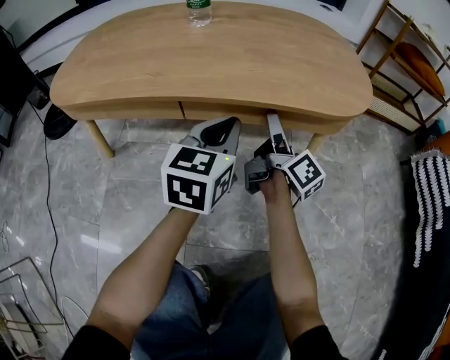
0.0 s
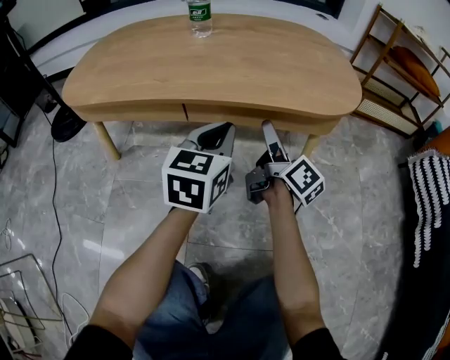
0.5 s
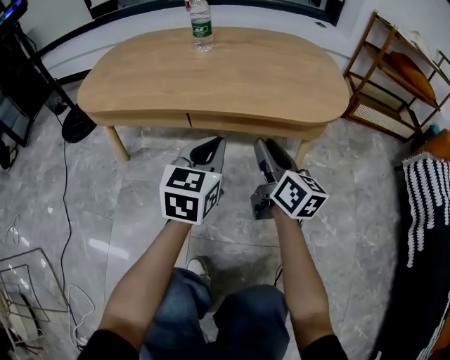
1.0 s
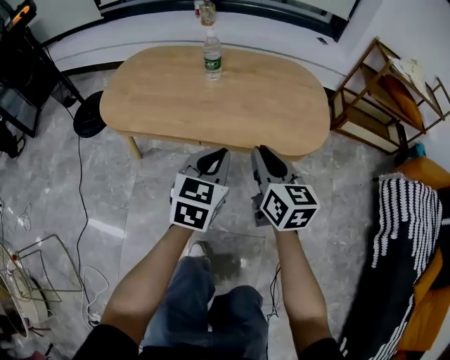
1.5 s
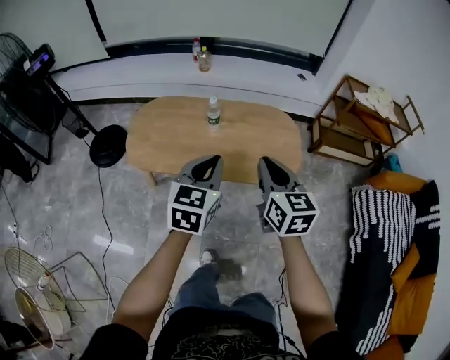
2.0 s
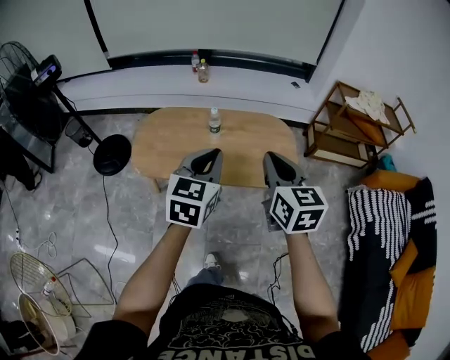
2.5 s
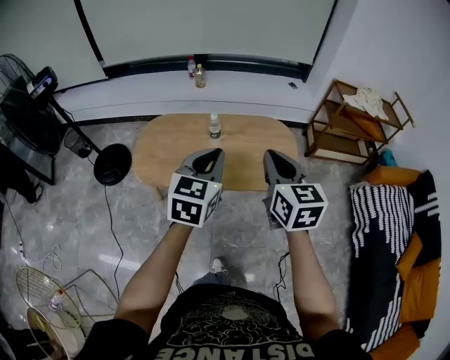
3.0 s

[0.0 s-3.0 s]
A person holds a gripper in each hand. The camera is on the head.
0.0 to 1.5 s: The right gripper moves upward and backward, approximately 30 cm, rotates around the line of its fingers by approximately 50 degrees, counterclockwise from behind, and closes. The left gripper goes about 20 cm upward.
1.5 to 3.0 s: The grippers both shift upward by some 40 cm.

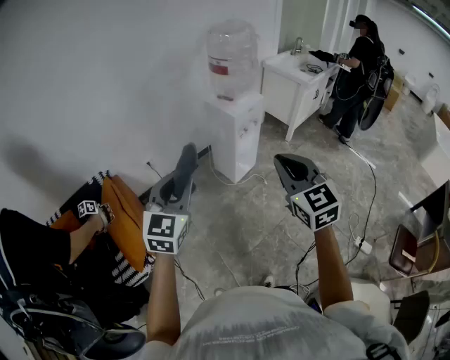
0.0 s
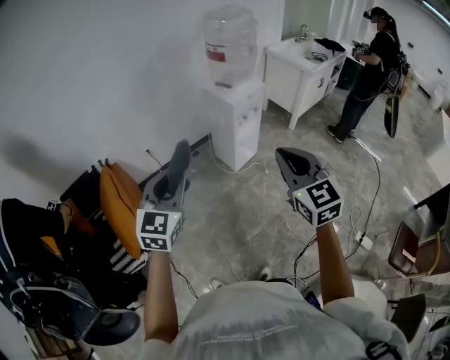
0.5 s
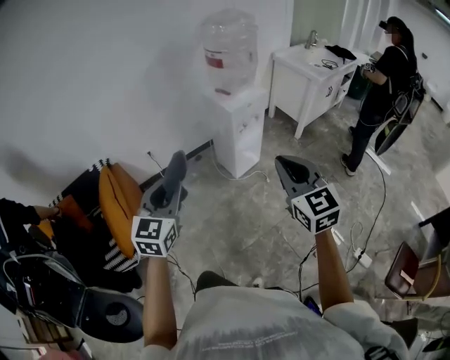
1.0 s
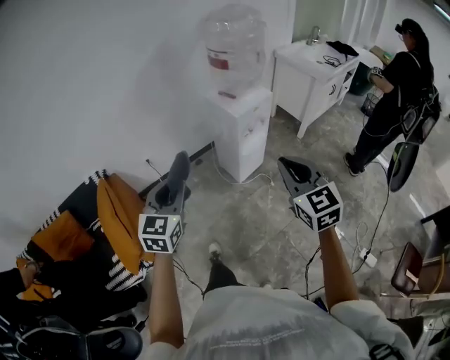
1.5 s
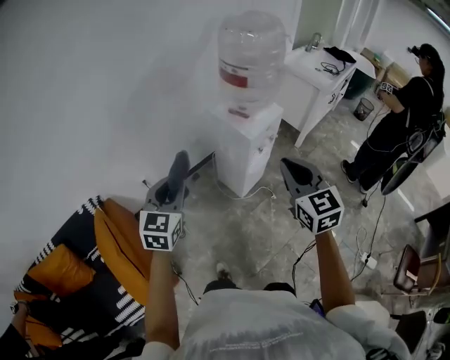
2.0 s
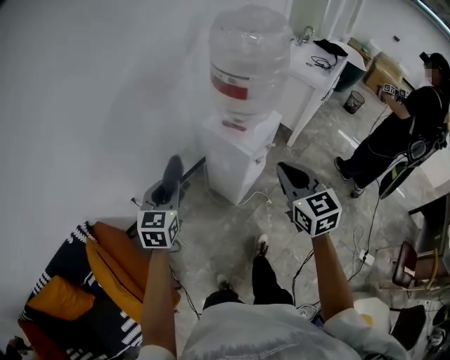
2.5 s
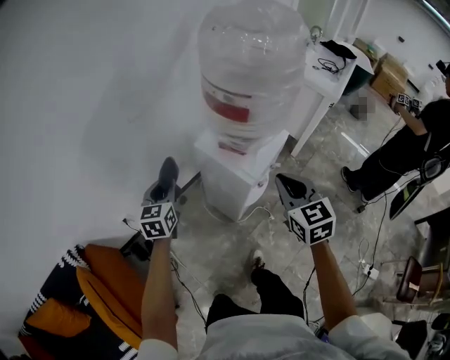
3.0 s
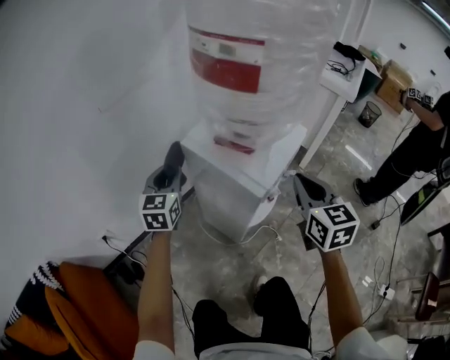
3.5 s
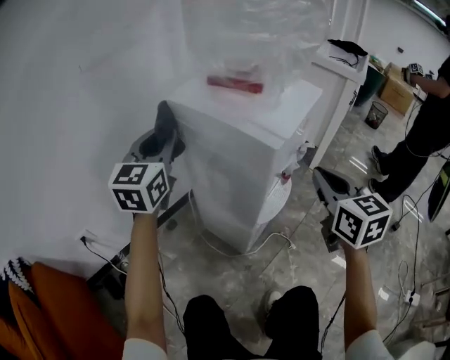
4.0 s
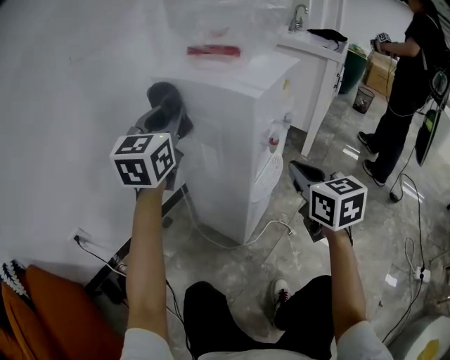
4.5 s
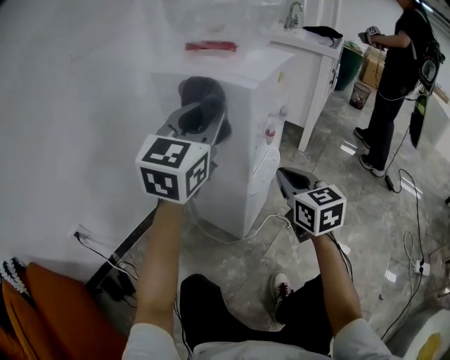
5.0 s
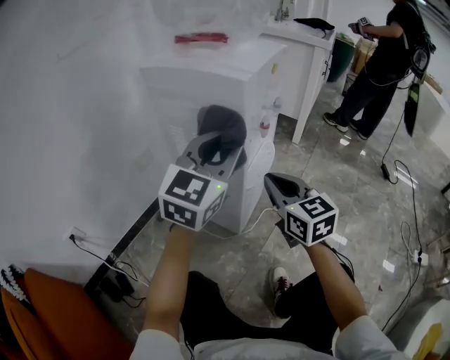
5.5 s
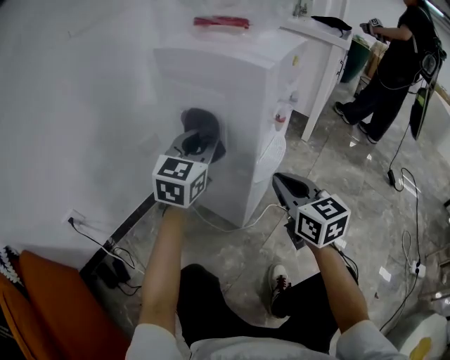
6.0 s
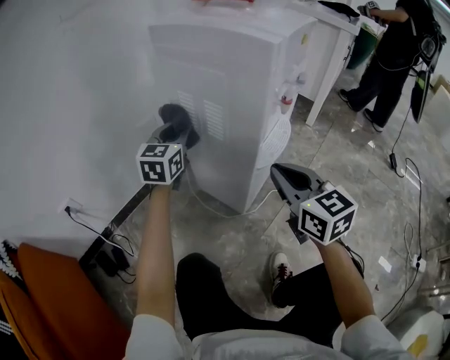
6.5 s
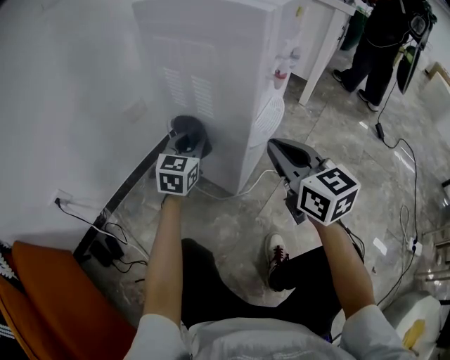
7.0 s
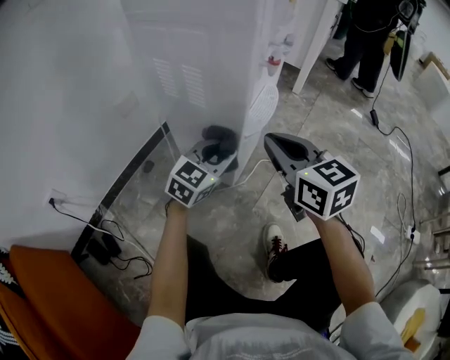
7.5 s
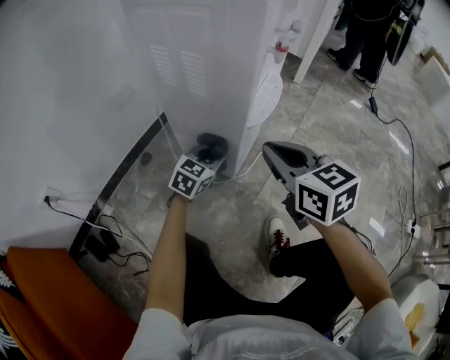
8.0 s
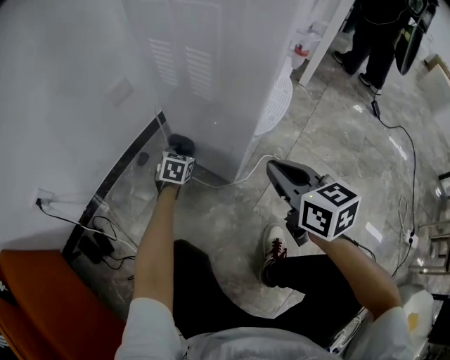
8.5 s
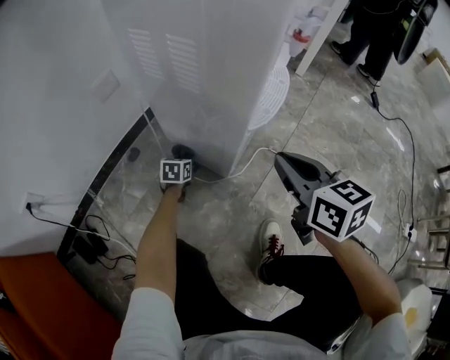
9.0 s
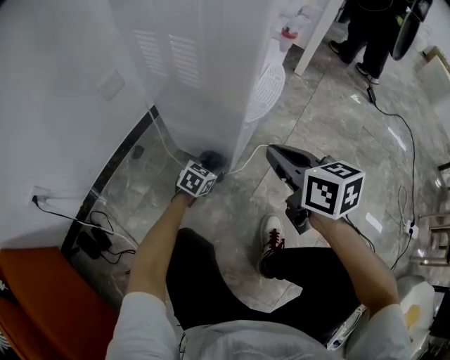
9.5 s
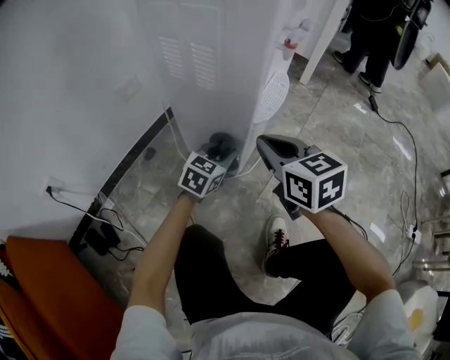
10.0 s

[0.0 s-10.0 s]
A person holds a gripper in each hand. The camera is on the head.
0.0 to 2.0 s: Both grippers travel together forward, approximately 30 cm.
2.0 to 4.0 s: The right gripper shifts roughly 50 cm downward and forward; the left gripper travels forward and downward by roughly 50 cm.
4.0 to 6.0 s: The right gripper shifts approximately 20 cm downward, backward and to the left; the left gripper moves downward and to the right, roughly 20 cm.
6.0 to 8.0 s: The right gripper moves downward, about 5 cm; the left gripper moves downward, about 30 cm, and rotates approximately 30 degrees.
8.0 to 10.0 s: The left gripper moves some 20 cm downward and comes back.

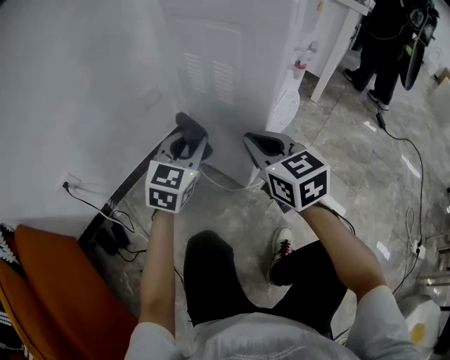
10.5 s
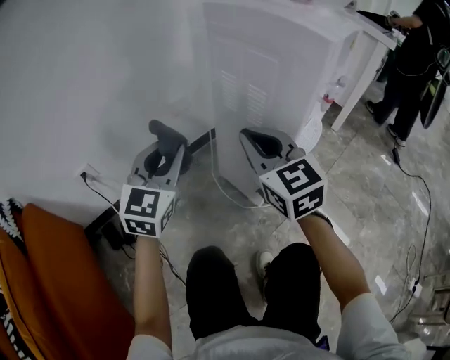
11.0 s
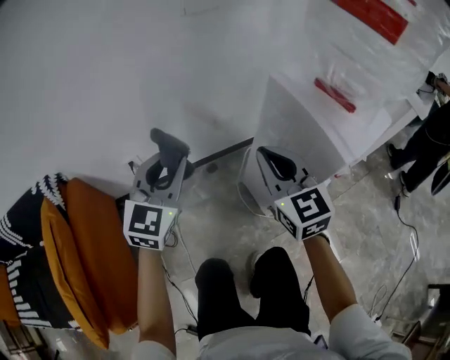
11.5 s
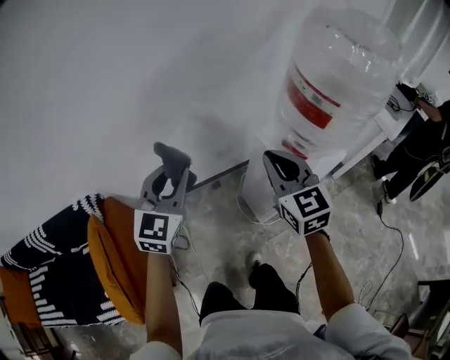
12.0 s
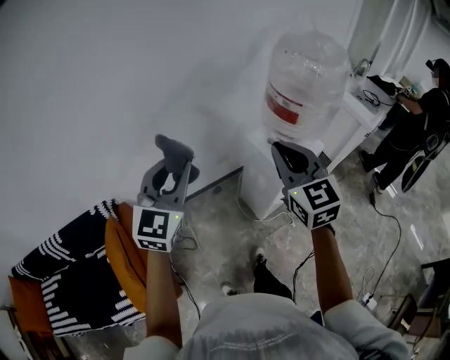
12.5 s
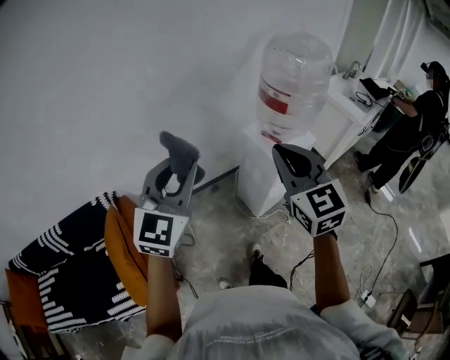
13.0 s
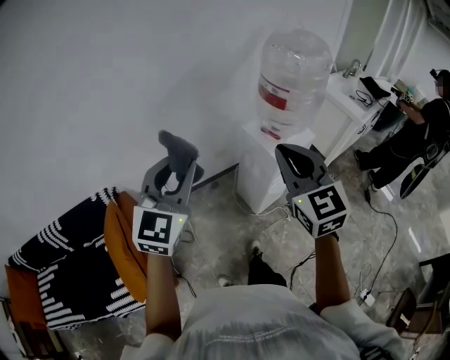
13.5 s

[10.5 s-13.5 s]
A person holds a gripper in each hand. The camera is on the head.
10.5 to 12.0 s: The right gripper shifts roughly 50 cm upward, and turns by roughly 20 degrees; the left gripper heads upward and to the left, covering some 60 cm, and rotates roughly 30 degrees.
12.0 to 13.5 s: The grippers both shift backward and upward by roughly 30 cm.

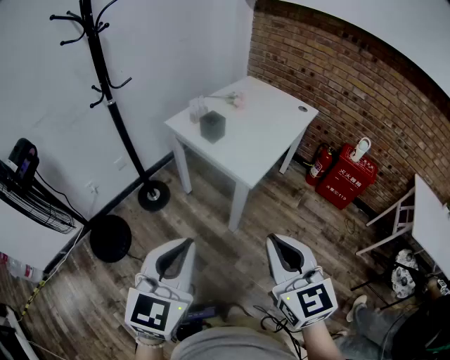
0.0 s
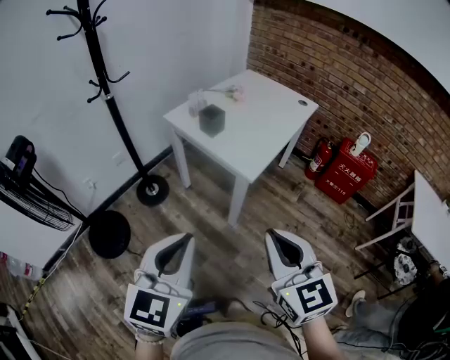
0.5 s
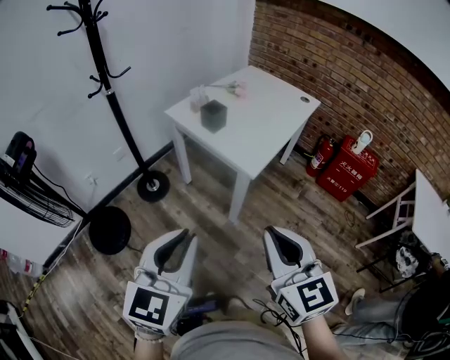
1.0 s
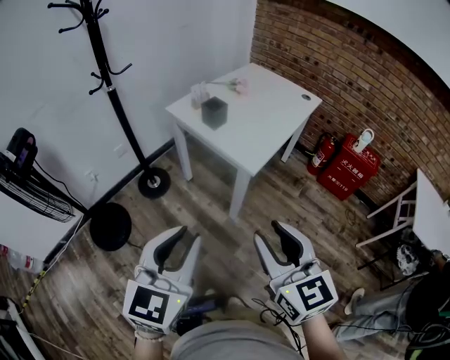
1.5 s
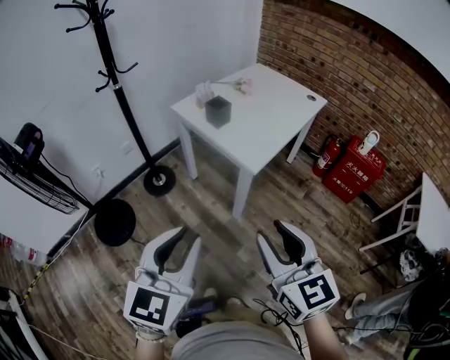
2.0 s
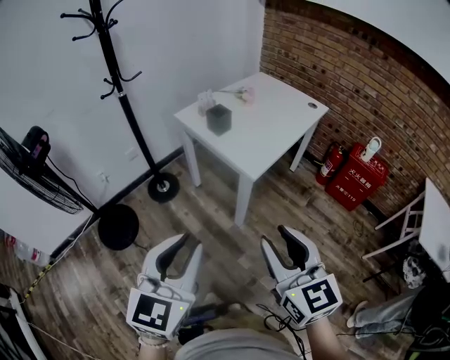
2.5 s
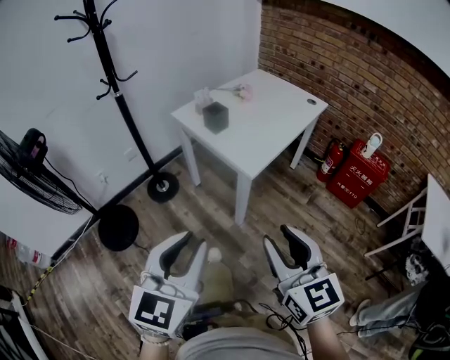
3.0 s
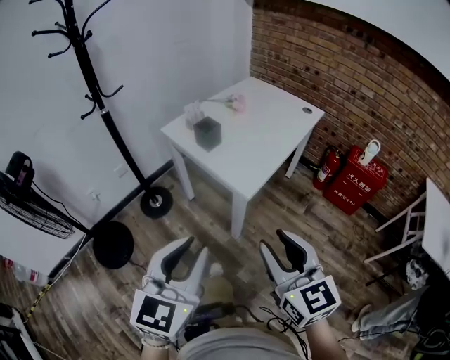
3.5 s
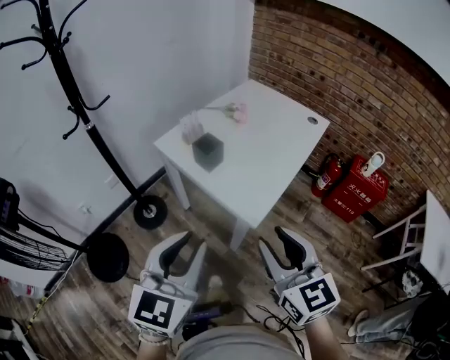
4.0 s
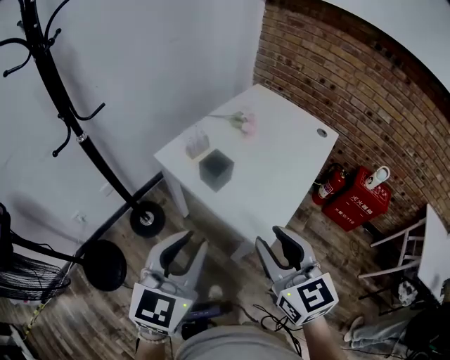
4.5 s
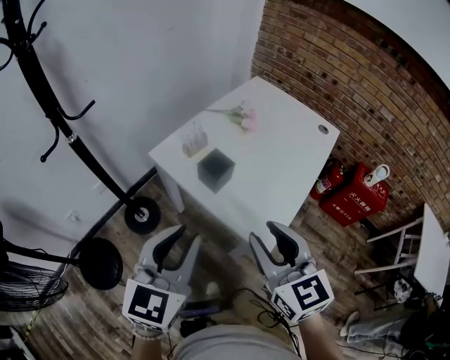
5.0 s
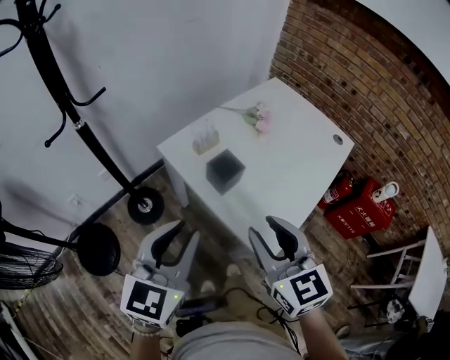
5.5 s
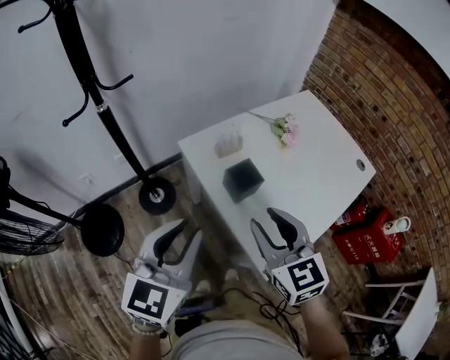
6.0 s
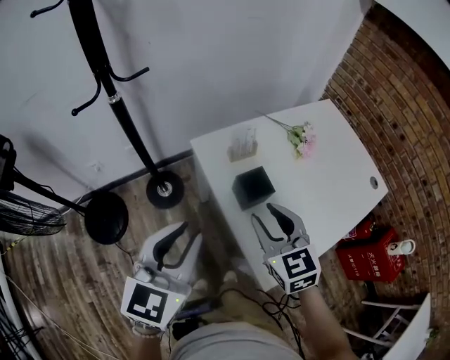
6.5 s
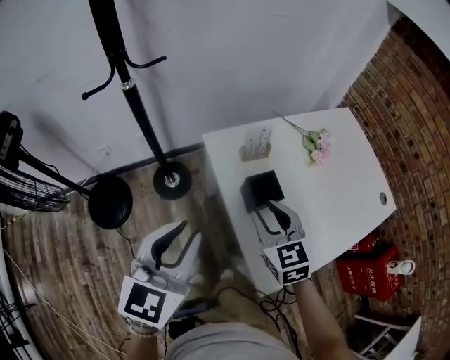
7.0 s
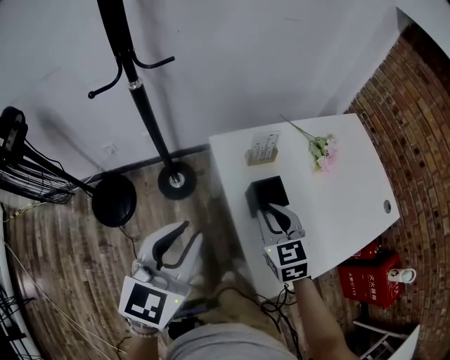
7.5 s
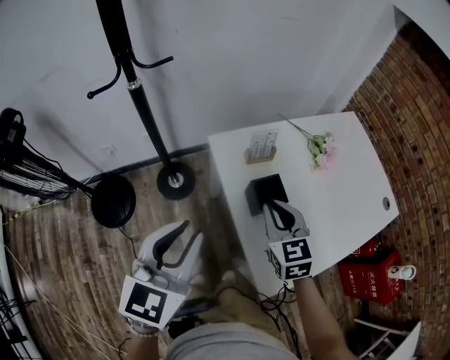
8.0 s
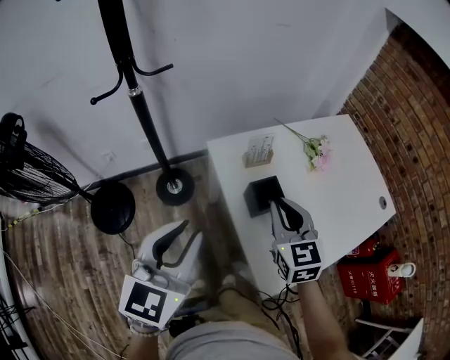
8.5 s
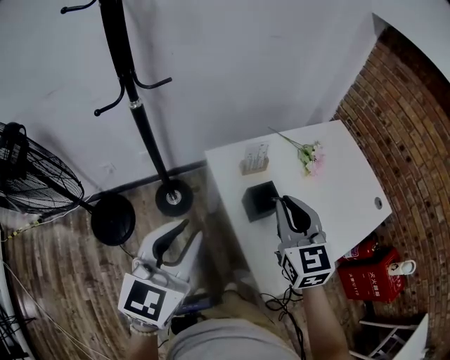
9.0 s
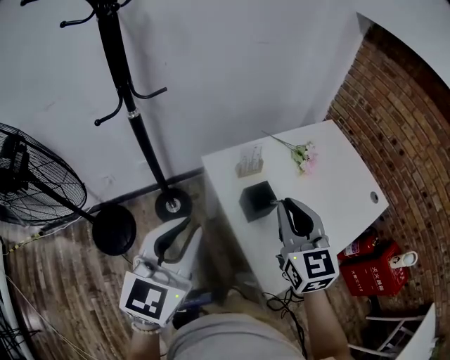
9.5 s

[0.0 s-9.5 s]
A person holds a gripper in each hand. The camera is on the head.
0.0 to 2.0 s: The right gripper opens.
2.0 to 4.0 s: Both grippers travel together forward, about 20 cm.
4.0 to 5.5 s: Both grippers move forward, approximately 20 cm.
5.5 to 7.5 s: The left gripper travels forward by some 5 cm, and changes its angle by approximately 30 degrees; the right gripper is displaced forward and downward by roughly 20 cm, and rotates approximately 30 degrees.
7.5 to 9.5 s: The right gripper is displaced upward by about 15 cm, and changes its angle by about 20 degrees, while the left gripper shifts about 5 cm upward.

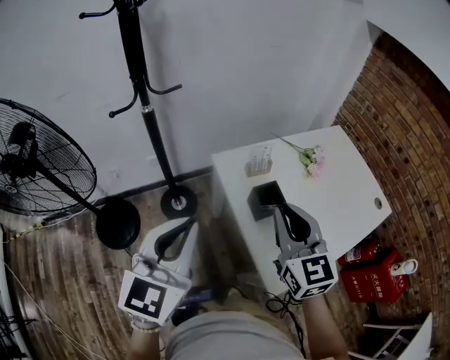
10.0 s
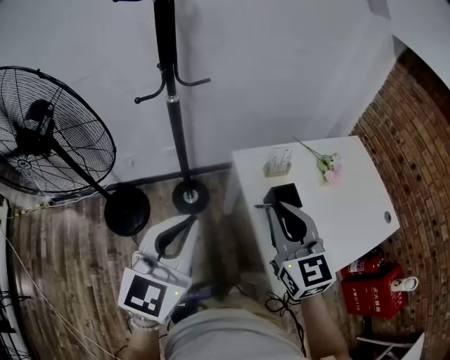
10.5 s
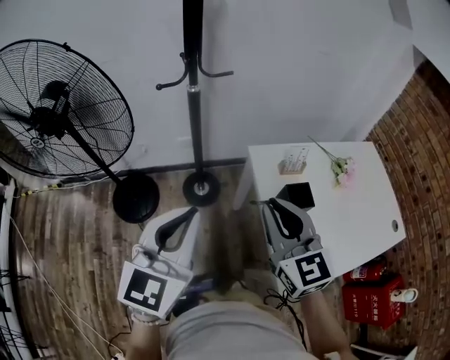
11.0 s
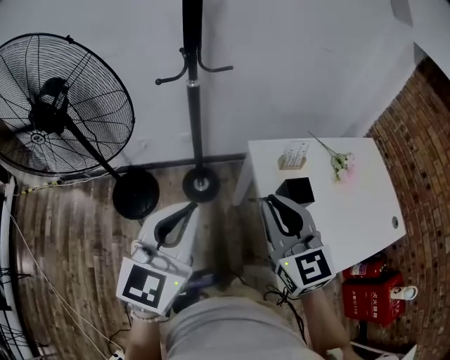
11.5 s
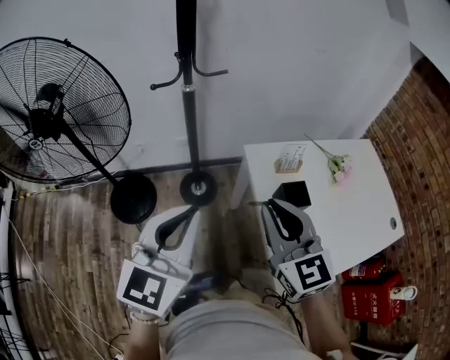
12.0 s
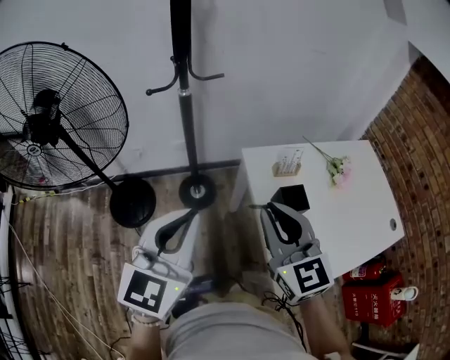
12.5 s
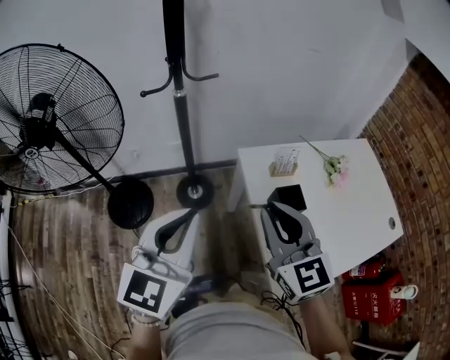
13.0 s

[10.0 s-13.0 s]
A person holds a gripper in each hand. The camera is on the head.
10.0 to 11.5 s: The left gripper goes approximately 5 cm to the left, while the right gripper shifts some 10 cm to the left.
11.5 to 13.0 s: The grippers move only a little.
